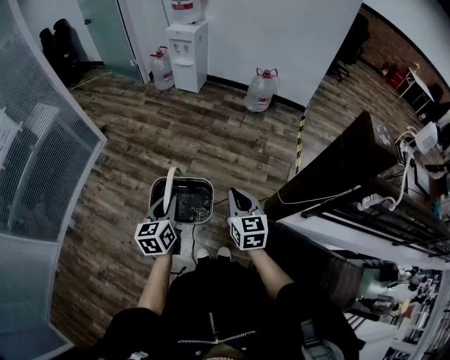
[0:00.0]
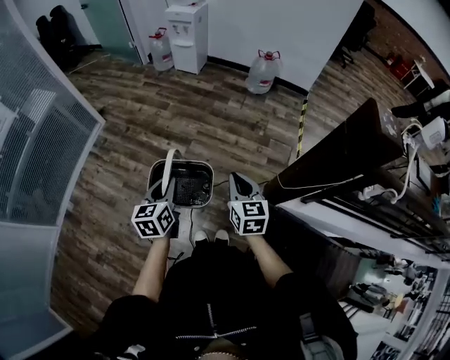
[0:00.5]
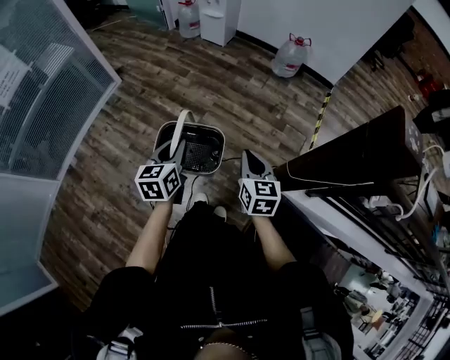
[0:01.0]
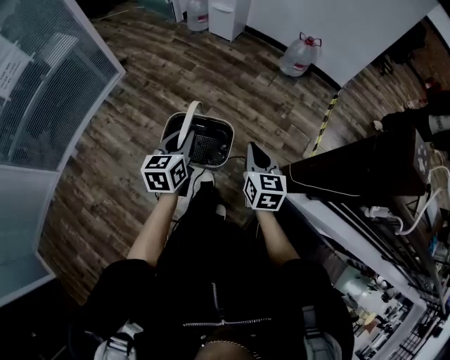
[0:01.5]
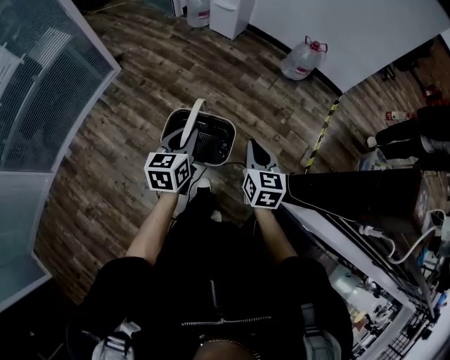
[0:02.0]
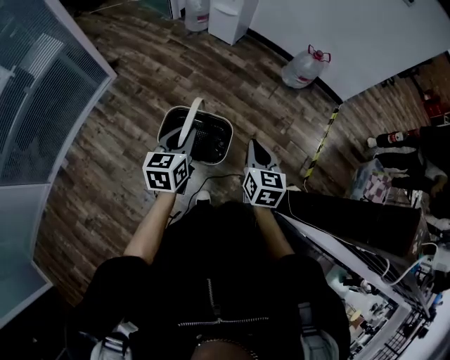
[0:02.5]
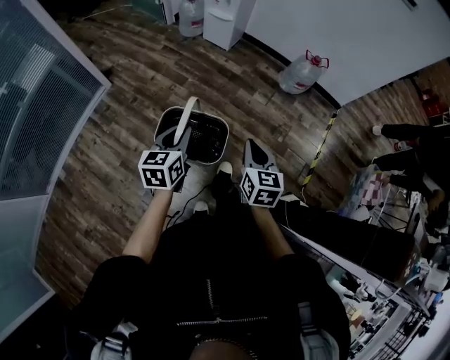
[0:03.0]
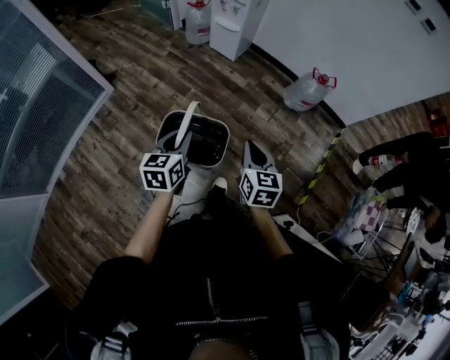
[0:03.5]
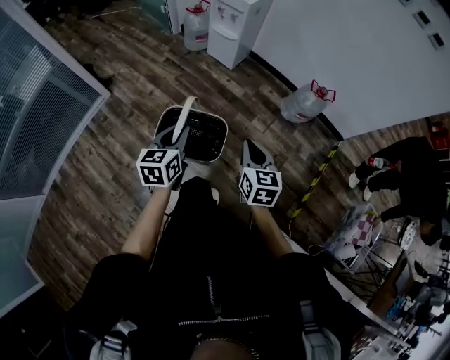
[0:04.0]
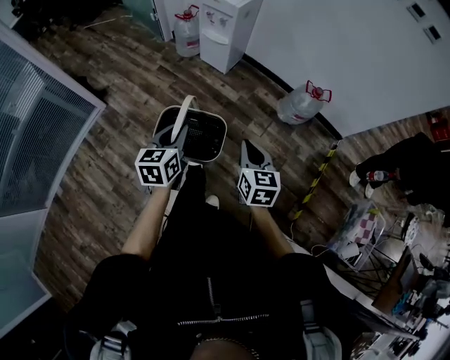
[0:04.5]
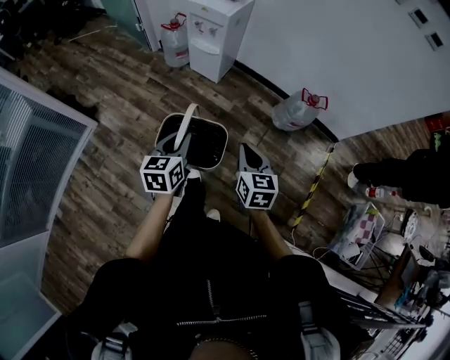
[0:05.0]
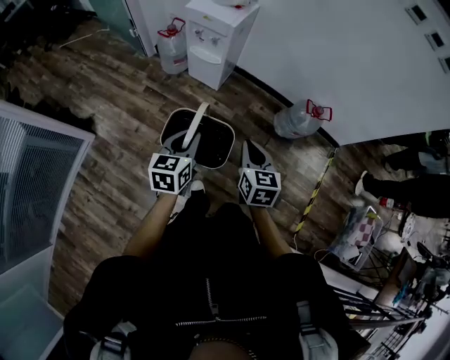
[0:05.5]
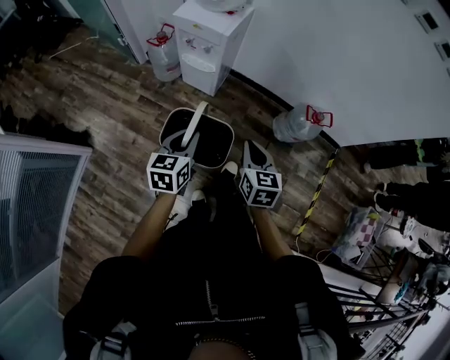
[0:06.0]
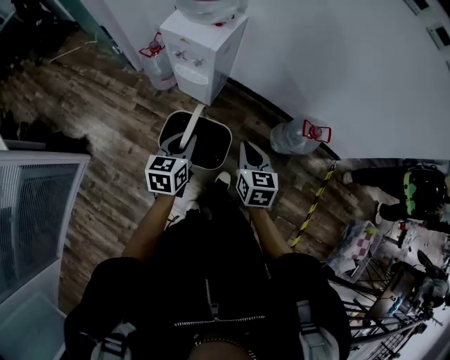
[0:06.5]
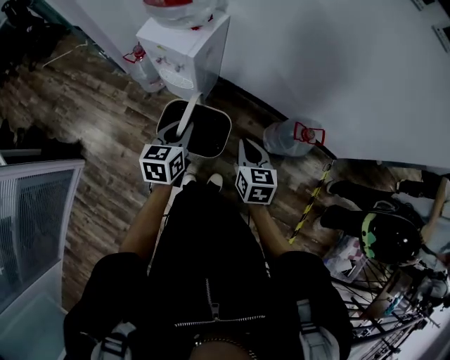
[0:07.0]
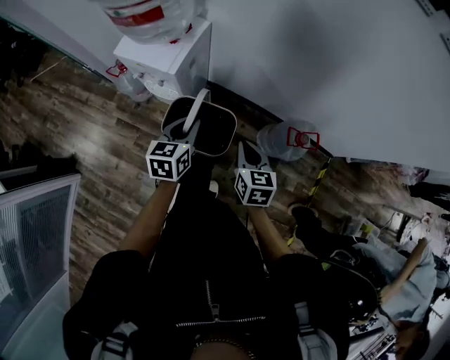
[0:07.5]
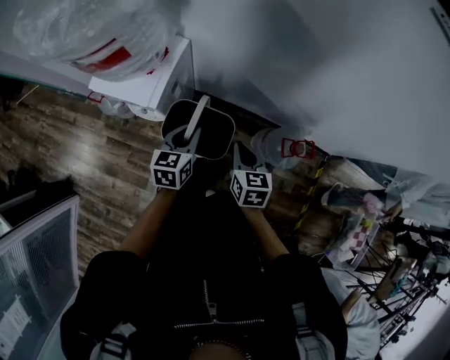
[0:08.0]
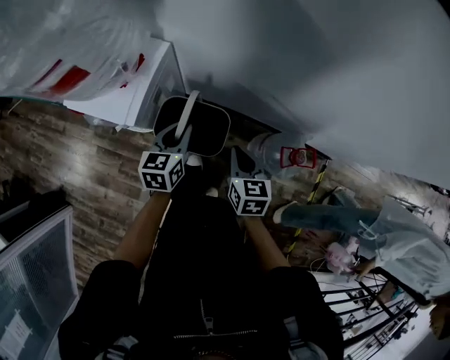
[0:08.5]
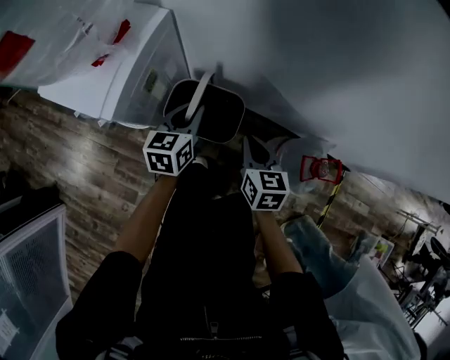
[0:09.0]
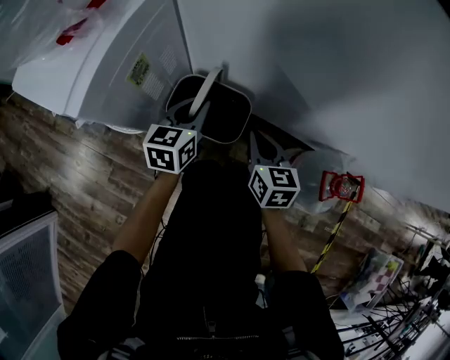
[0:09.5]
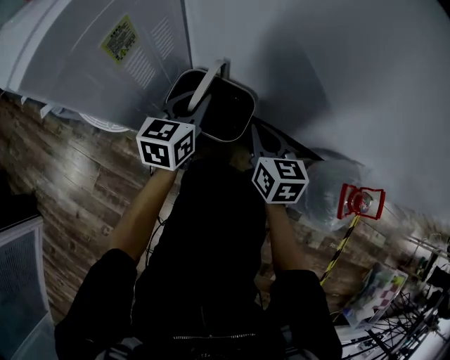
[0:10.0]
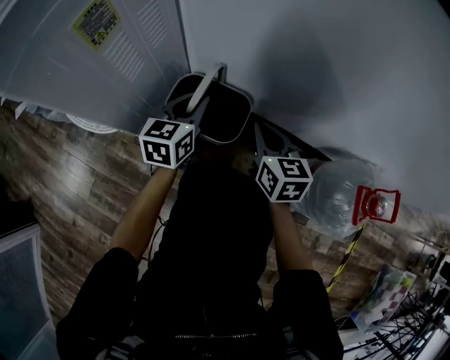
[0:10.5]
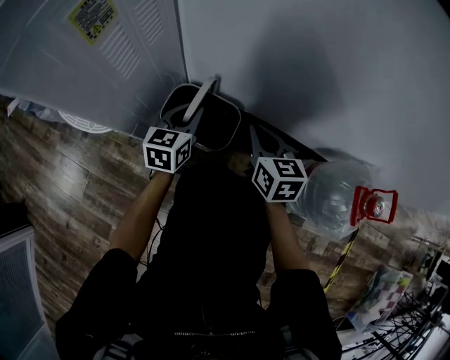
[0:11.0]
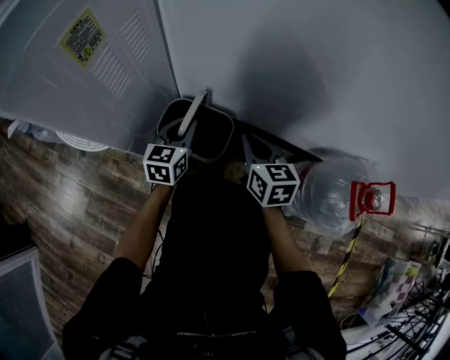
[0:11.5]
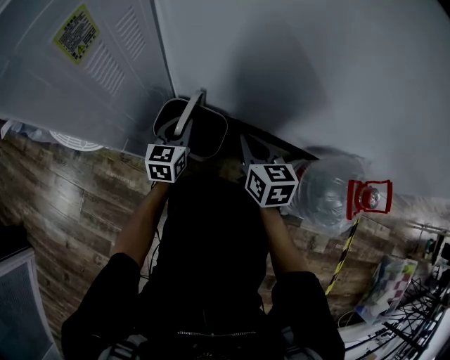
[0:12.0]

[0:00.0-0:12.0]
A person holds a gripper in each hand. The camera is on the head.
0:00.0 to 0:02.0: The two grippers go about 15 cm forward.
0:02.0 to 0:04.0: Both grippers move forward, roughly 40 cm.
0:04.0 to 0:06.0: The grippers both shift forward by approximately 35 cm.
0:06.0 to 0:08.0: The right gripper goes approximately 35 cm forward; the left gripper shifts about 40 cm forward and to the right.
0:08.0 to 0:10.0: Both grippers travel together downward and forward, approximately 35 cm.
0:10.0 to 0:12.0: The left gripper heads downward, covering roughly 20 cm. The right gripper goes some 10 cm downward.

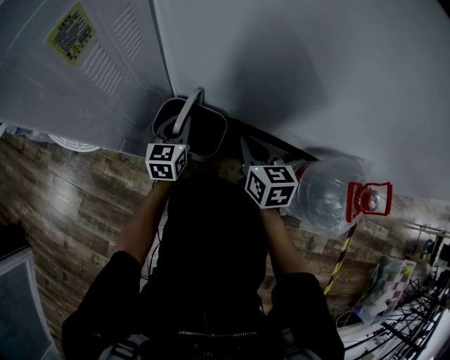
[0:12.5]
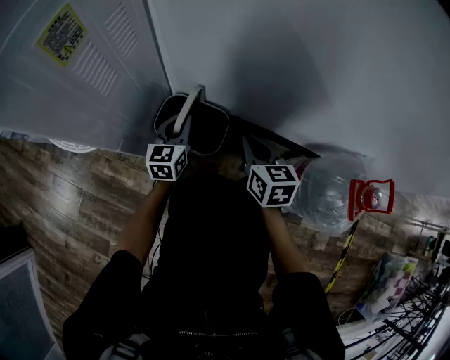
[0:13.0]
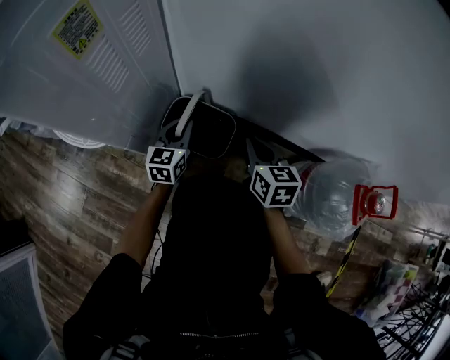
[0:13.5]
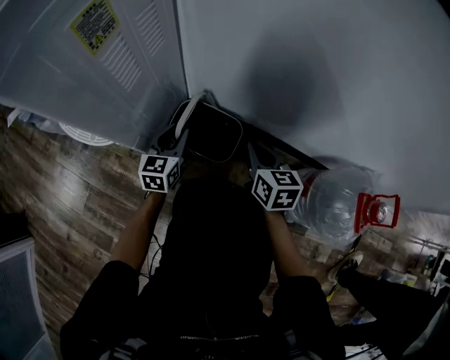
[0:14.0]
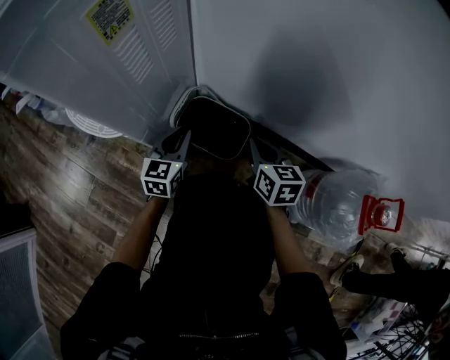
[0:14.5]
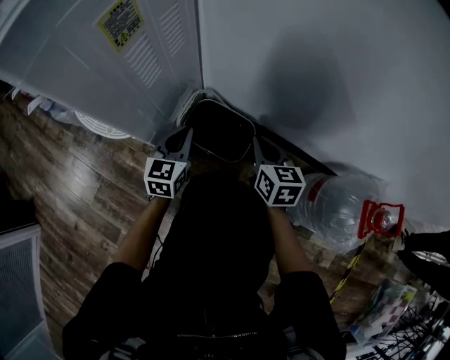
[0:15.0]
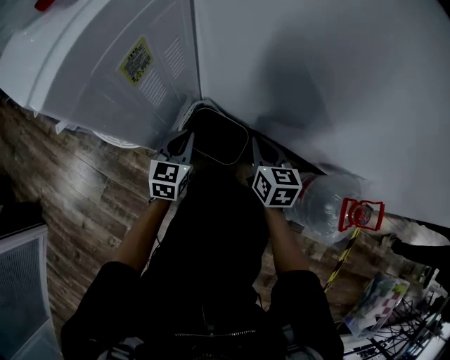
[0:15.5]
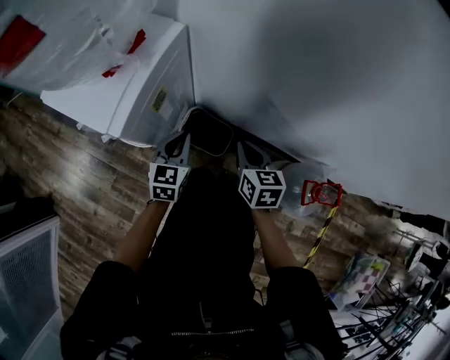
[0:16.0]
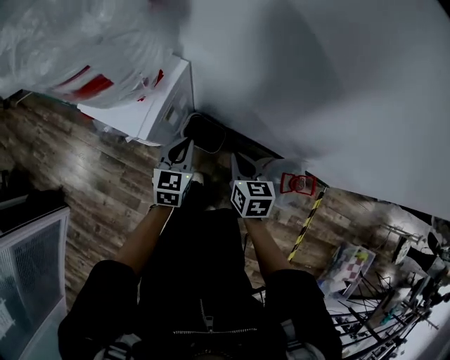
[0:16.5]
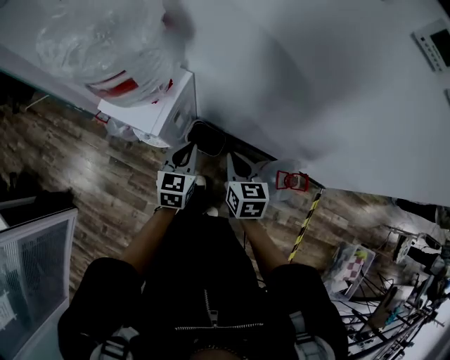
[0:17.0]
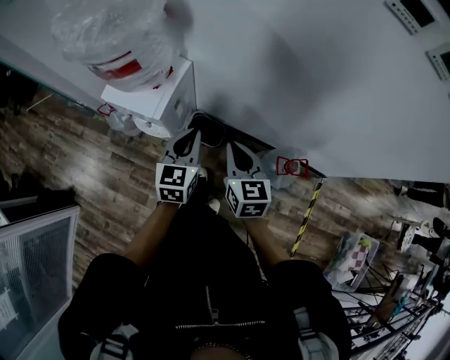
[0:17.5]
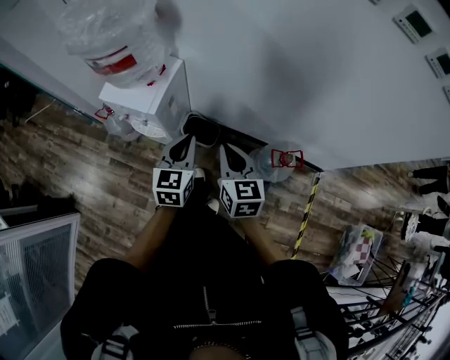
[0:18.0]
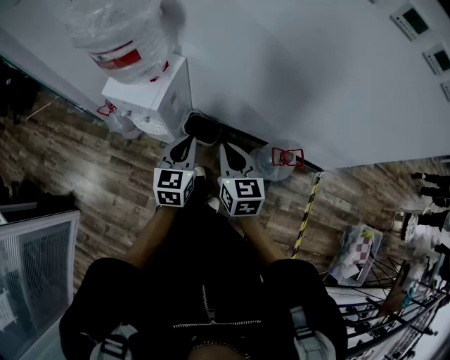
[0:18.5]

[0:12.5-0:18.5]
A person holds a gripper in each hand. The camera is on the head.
0:12.5 to 0:14.5: The left gripper shifts roughly 10 cm to the left and backward.
0:14.5 to 0:16.5: Both grippers travel together upward, about 40 cm.
0:16.5 to 0:18.5: Both grippers move upward and backward, about 20 cm.

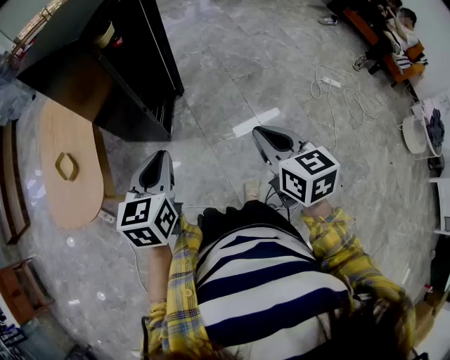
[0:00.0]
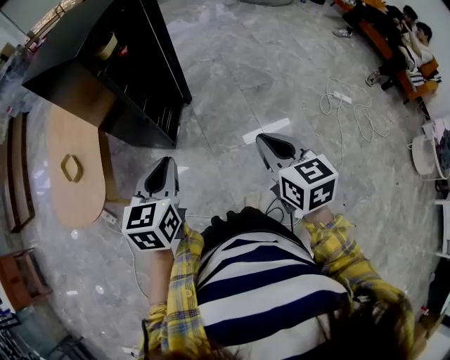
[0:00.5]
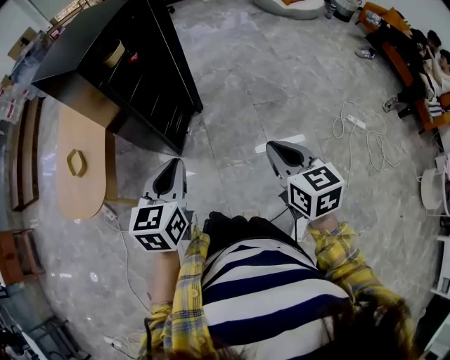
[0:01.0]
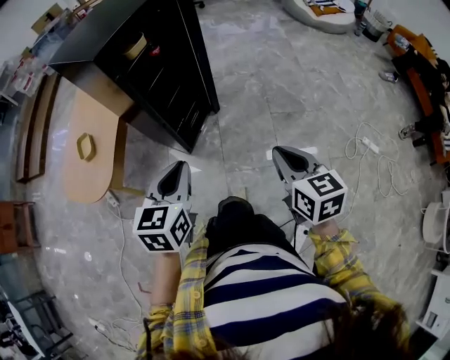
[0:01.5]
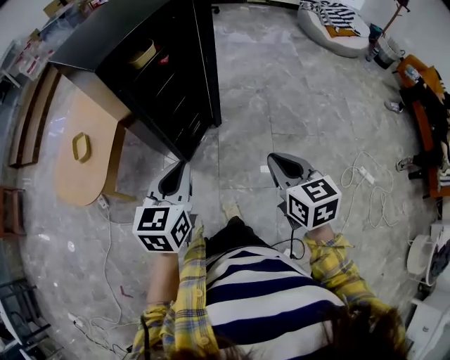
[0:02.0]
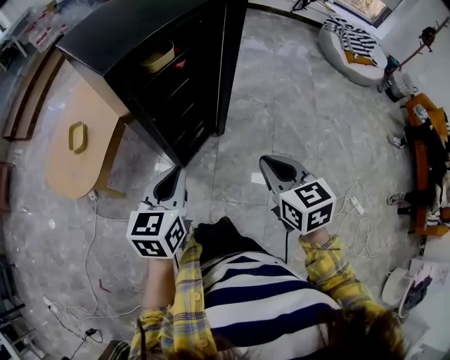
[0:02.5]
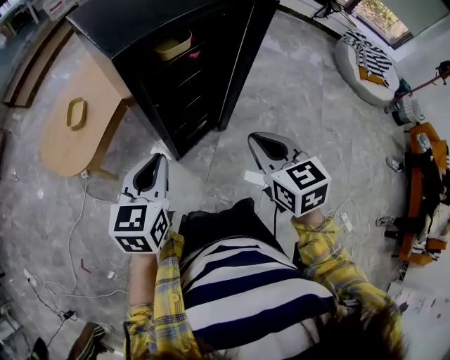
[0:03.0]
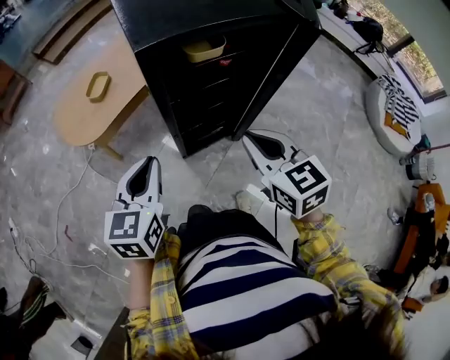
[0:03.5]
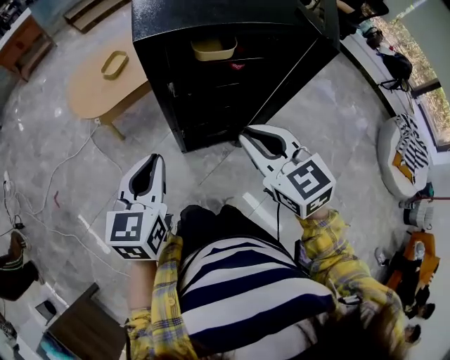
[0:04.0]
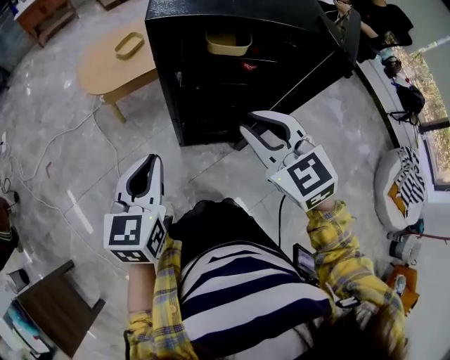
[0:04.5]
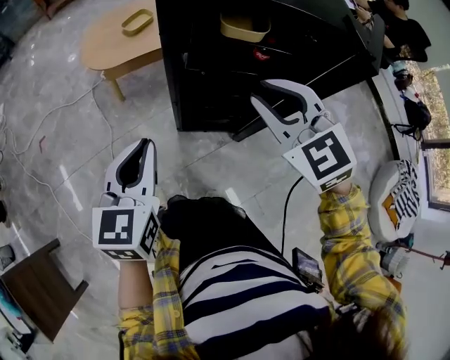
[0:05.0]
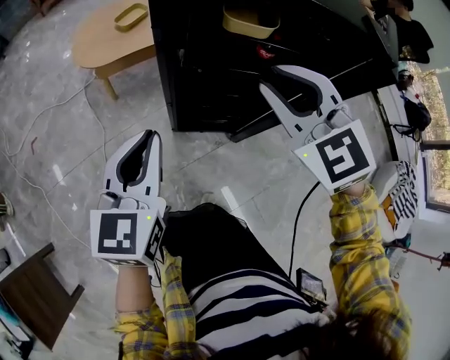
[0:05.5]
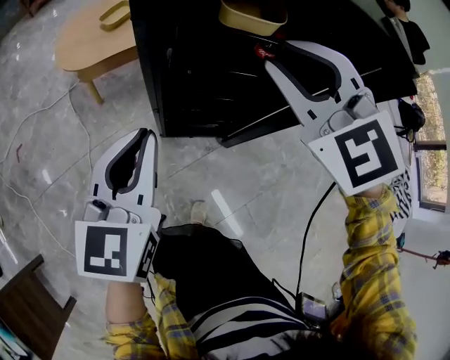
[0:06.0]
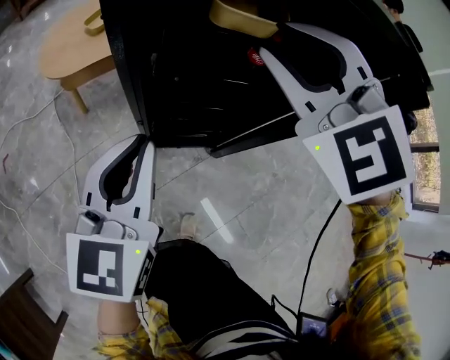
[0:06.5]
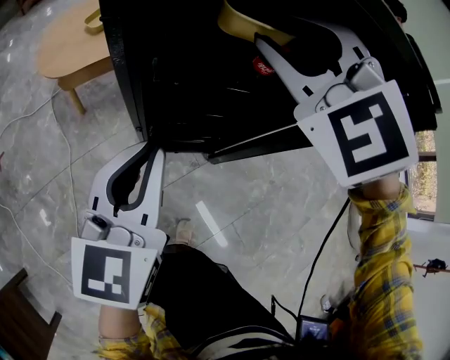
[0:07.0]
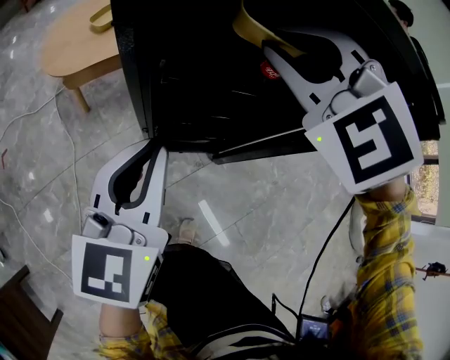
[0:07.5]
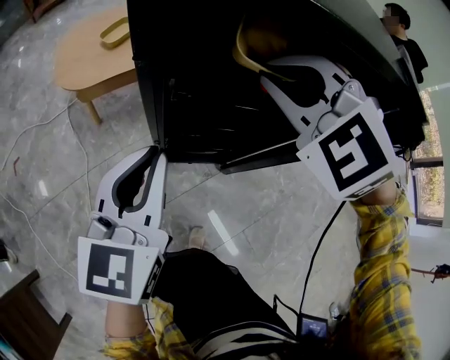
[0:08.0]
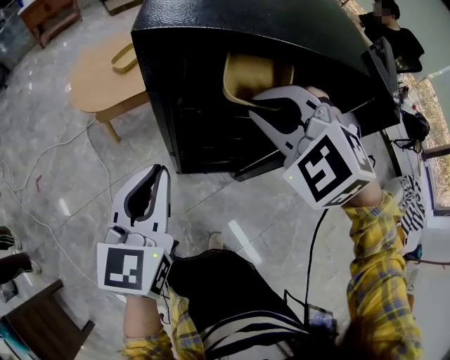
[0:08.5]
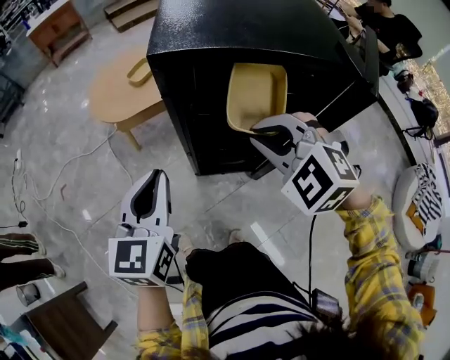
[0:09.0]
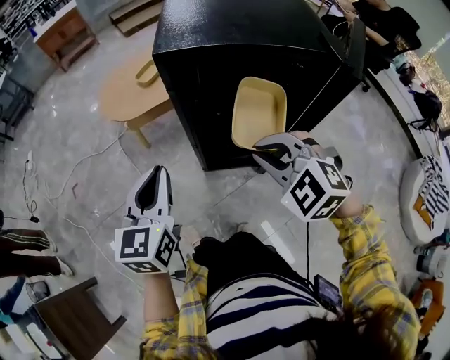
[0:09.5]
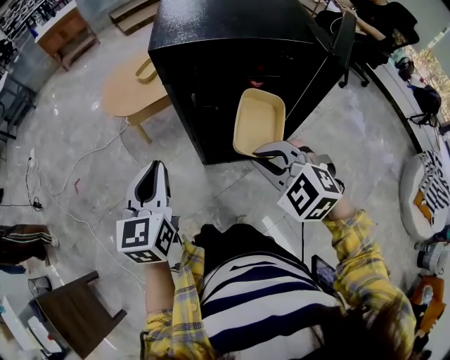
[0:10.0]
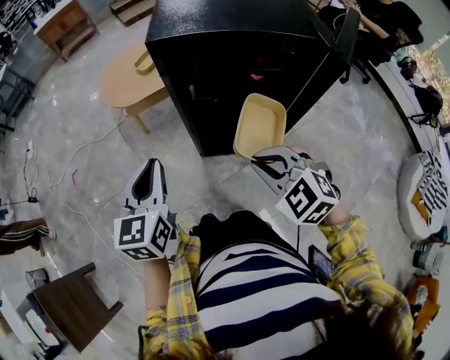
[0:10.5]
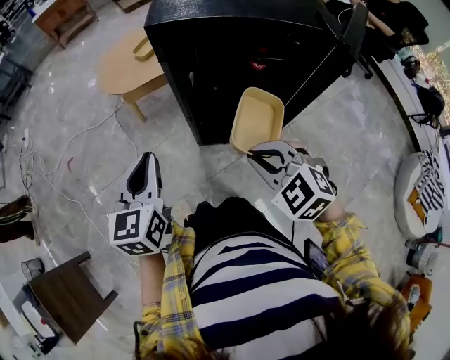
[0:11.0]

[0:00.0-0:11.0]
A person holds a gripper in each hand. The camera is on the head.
0:00.0 to 0:02.0: Both grippers travel together forward and to the right, approximately 20 cm. The right gripper swivels some 20 degrees.
0:02.0 to 0:03.5: The left gripper ends up some 10 cm from where it was, and rotates some 40 degrees. Meanwhile the right gripper shifts by about 25 cm, and swivels approximately 40 degrees.
0:03.5 to 0:05.5: The left gripper ends up about 5 cm from where it was, and changes its angle by approximately 30 degrees; the right gripper moves about 10 cm, and rolls counterclockwise, seen from behind, by roughly 40 degrees.
0:05.5 to 0:07.5: The left gripper heads forward, covering approximately 5 cm. The right gripper shifts some 10 cm forward, and turns by some 30 degrees.
0:07.5 to 0:09.0: The left gripper goes some 10 cm upward and to the left. The right gripper travels backward by about 10 cm.
0:09.0 to 0:11.0: The right gripper shifts approximately 15 cm backward and downward, while the left gripper shifts approximately 5 cm backward.
